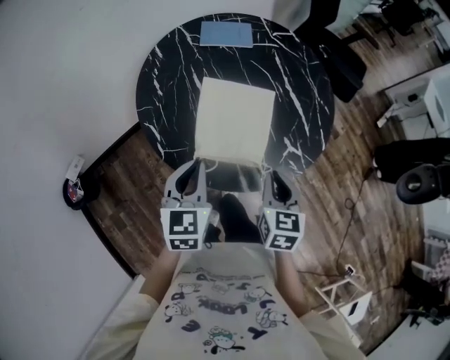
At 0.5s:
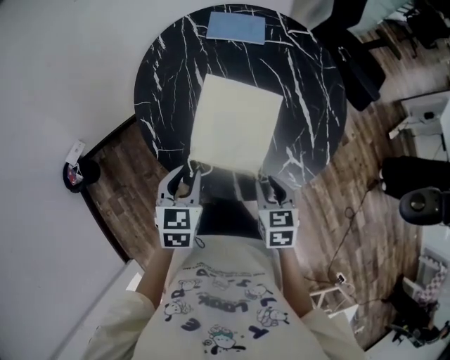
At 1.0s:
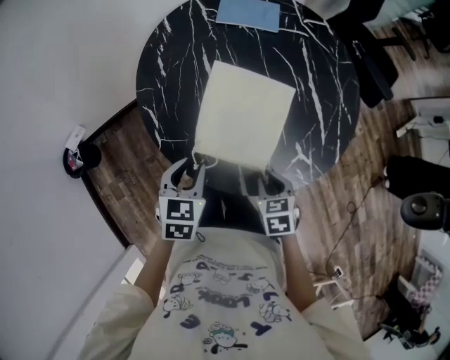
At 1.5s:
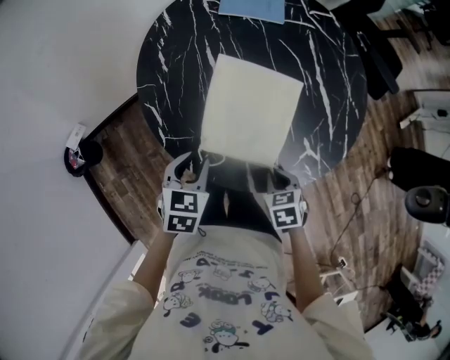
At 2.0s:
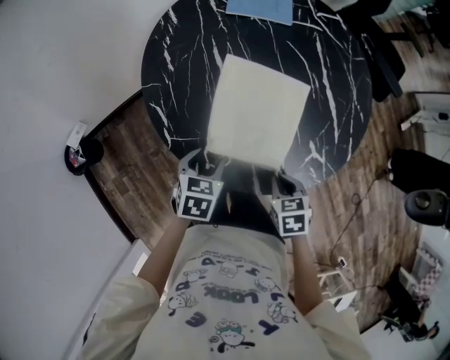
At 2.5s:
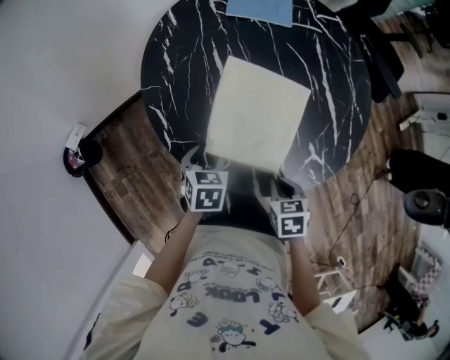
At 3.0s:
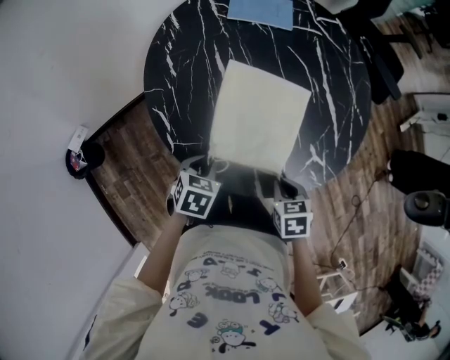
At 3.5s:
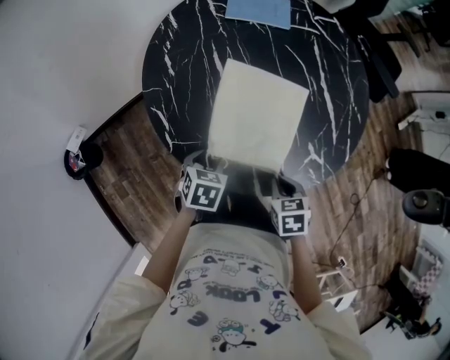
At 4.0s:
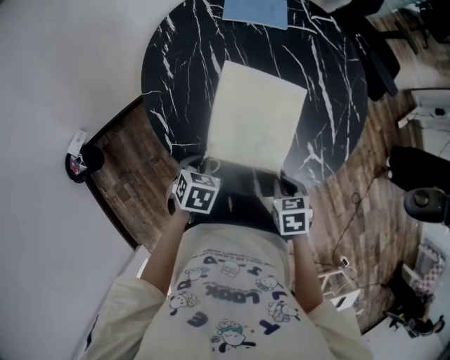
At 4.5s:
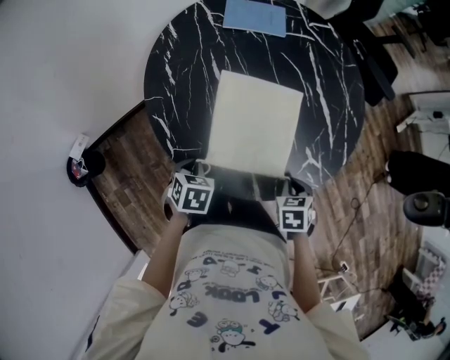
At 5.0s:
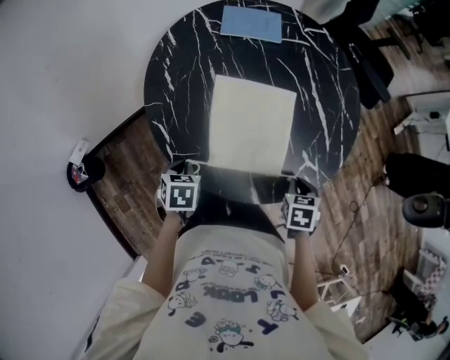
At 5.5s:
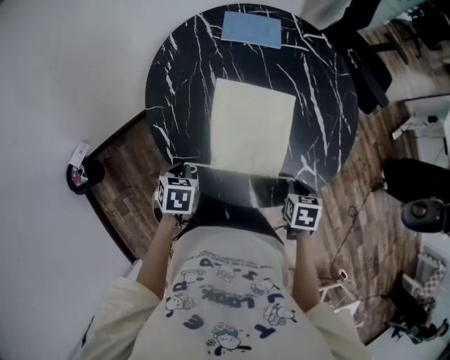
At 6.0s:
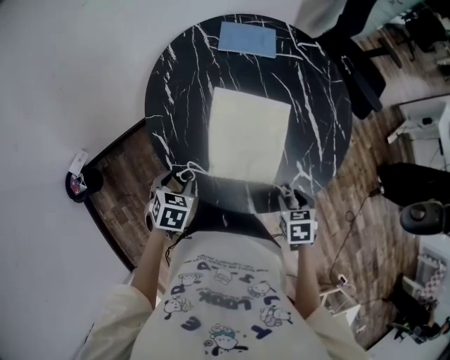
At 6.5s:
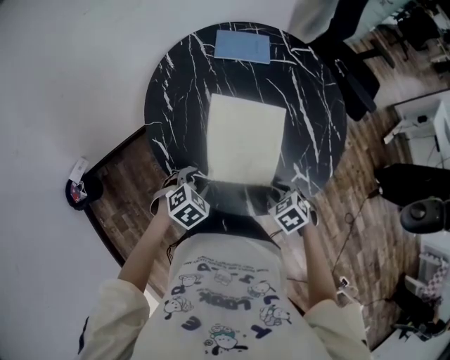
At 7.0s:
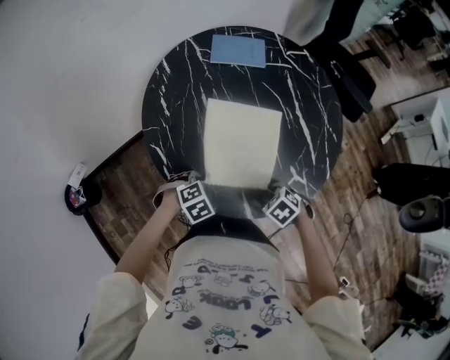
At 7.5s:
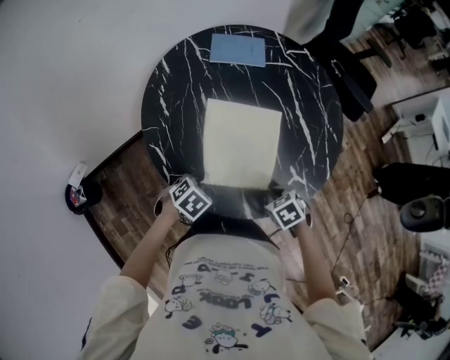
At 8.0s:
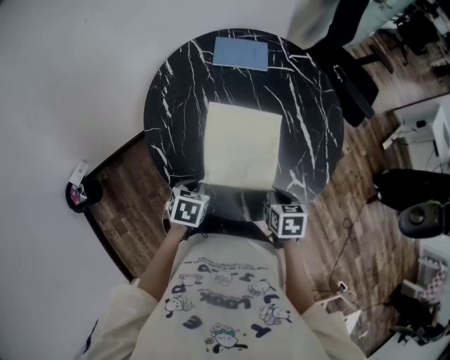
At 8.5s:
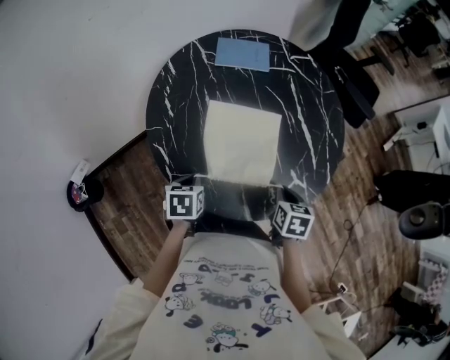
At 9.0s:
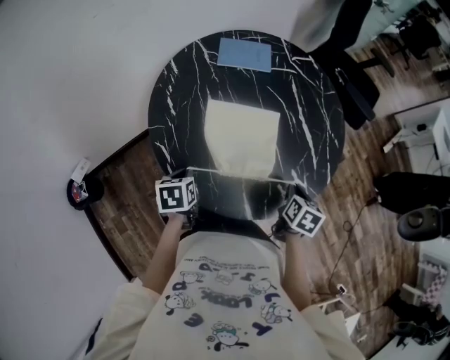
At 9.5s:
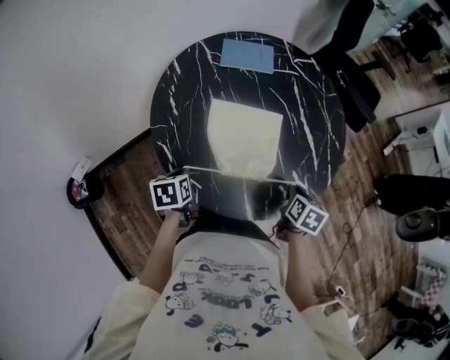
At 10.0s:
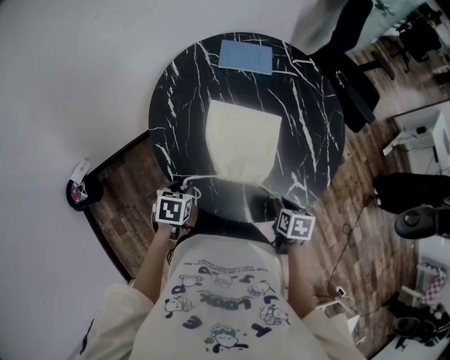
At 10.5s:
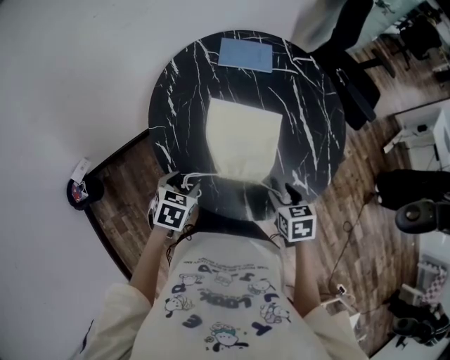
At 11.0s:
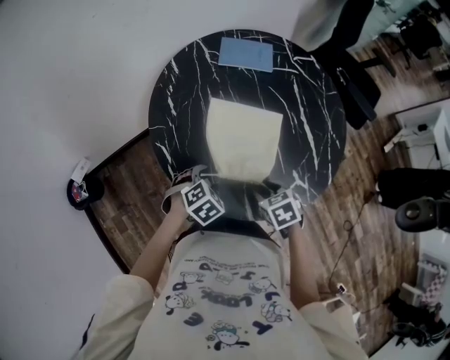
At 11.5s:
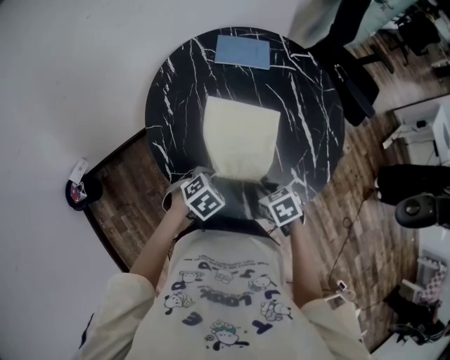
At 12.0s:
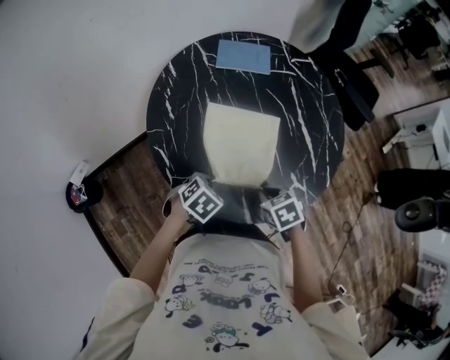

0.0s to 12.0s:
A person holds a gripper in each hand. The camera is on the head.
0.0s to 2.0s: Both grippers travel together downward, roughly 15 cm. The left gripper swivels approximately 30 degrees, and opens, while the right gripper changes its angle by approximately 40 degrees, and opens, then closes again.
2.0s to 4.0s: The left gripper closes its fingers.
4.0s to 6.0s: The right gripper goes some 5 cm to the right, and opens its fingers; the left gripper shifts some 5 cm to the left, and opens up.
6.0s to 8.0s: The right gripper moves about 5 cm, and closes up, while the left gripper ends up approximately 5 cm from where it was, and closes up.
8.0s to 10.0s: The right gripper ends up some 5 cm from where it was, and opens, while the left gripper moves to the left, some 5 cm, and opens its fingers.
10.0s to 12.0s: The left gripper is displaced to the right by approximately 10 cm, rotates approximately 40 degrees, and closes up; the right gripper heads to the left, covering about 10 cm, rotates approximately 40 degrees, and closes its fingers.

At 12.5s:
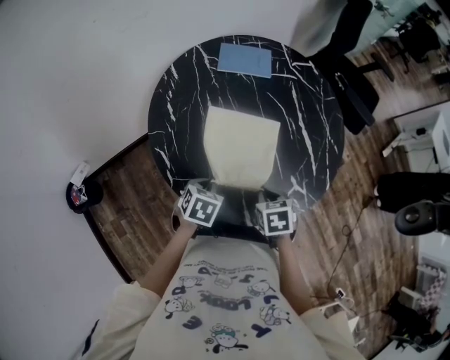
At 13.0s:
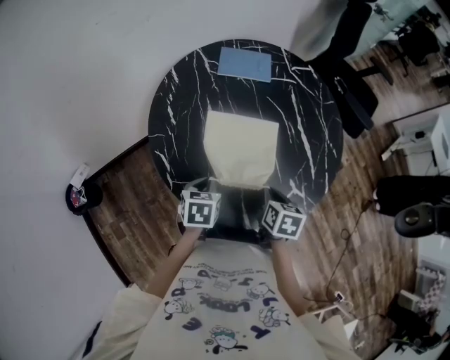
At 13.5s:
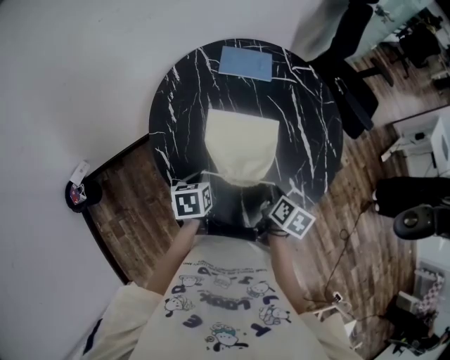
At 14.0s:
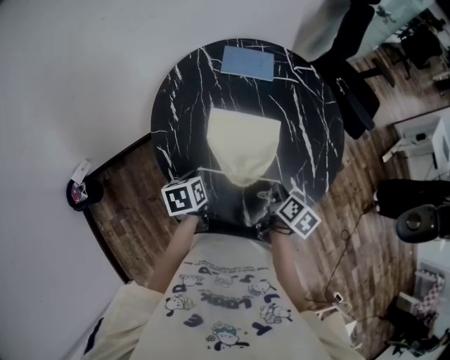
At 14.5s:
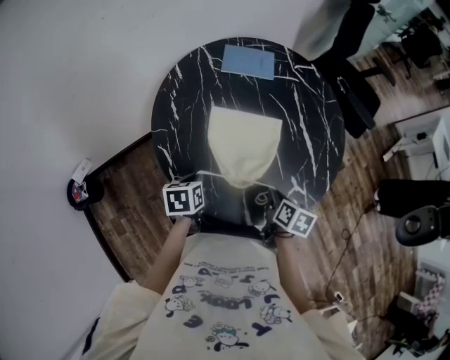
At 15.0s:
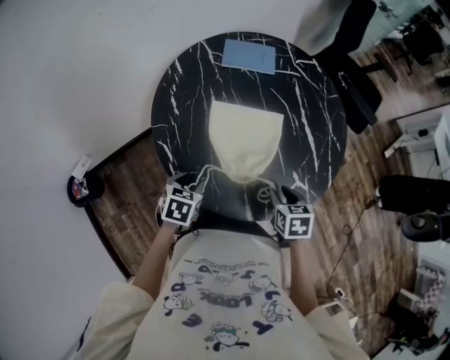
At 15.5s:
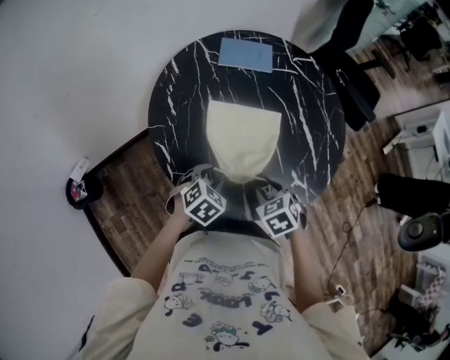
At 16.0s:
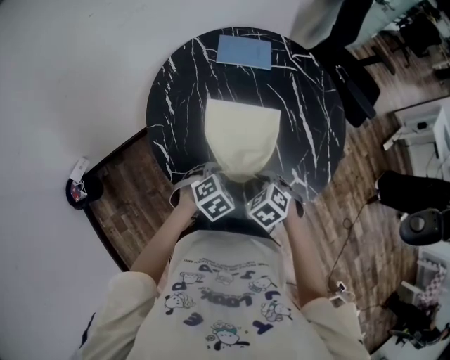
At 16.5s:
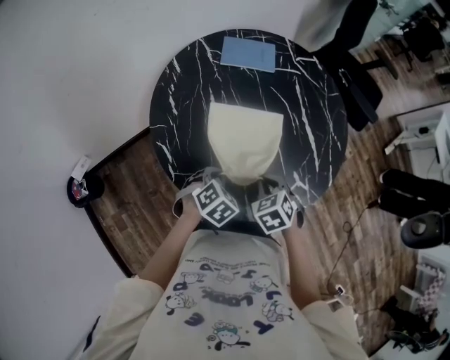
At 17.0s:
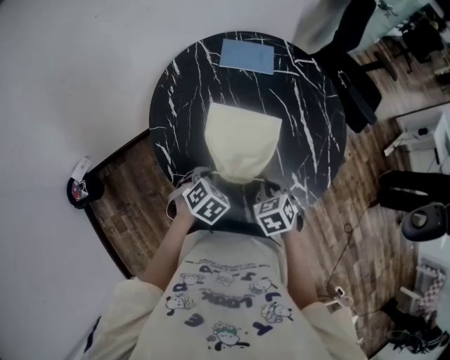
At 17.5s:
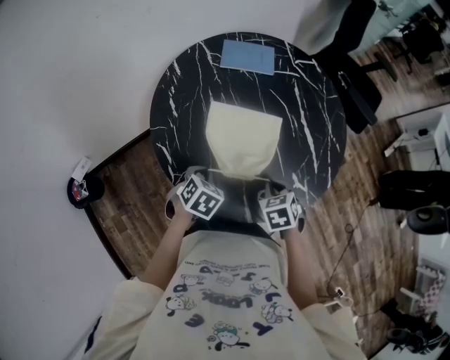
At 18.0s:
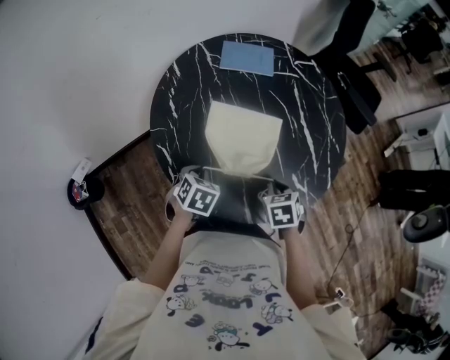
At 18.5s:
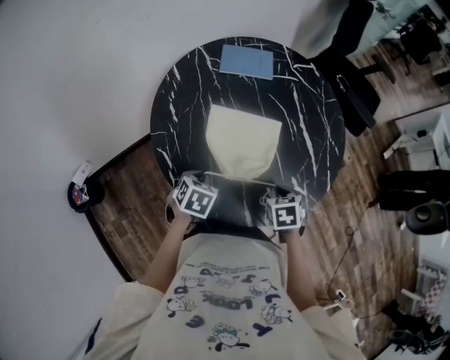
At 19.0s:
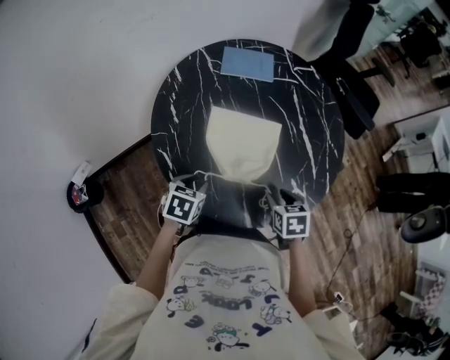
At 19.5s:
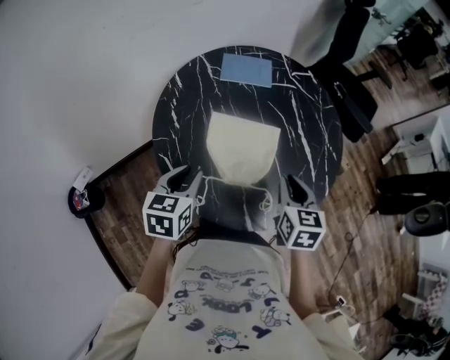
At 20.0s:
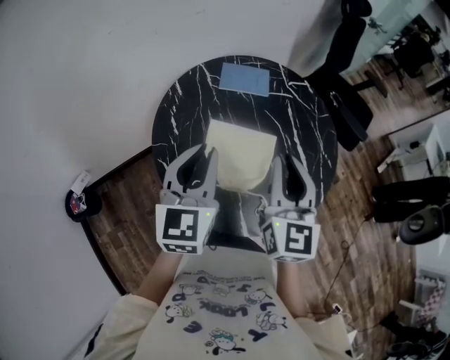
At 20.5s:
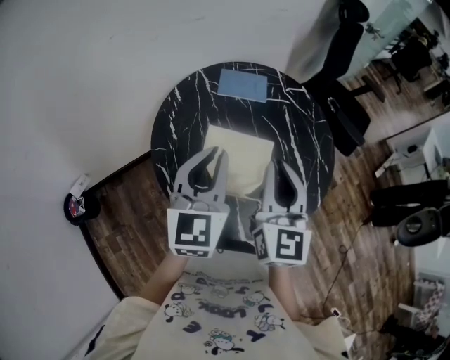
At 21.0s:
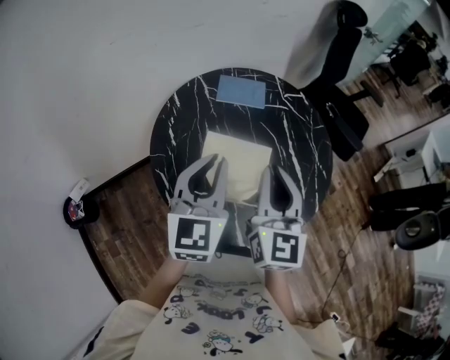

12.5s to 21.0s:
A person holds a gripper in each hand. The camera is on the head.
12.5s to 14.5s: The right gripper turns by about 40 degrees; the left gripper changes its angle by about 30 degrees.
14.5s to 16.5s: The left gripper shifts some 5 cm to the right, twists roughly 60 degrees clockwise, seen from behind, and opens, then closes again, while the right gripper heads to the left, covering roughly 5 cm, rotates around the line of its fingers by about 60 degrees, counterclockwise from behind, and opens and closes again.
16.5s to 19.0s: The left gripper is displaced to the left by approximately 5 cm, swivels some 30 degrees, and opens up. Meanwhile the right gripper travels to the right by some 5 cm, turns by approximately 30 degrees, and opens.
19.0s to 21.0s: The grippers both shift upward by about 30 cm. The right gripper angles its fingers upward, by some 60 degrees, and closes its fingers; the left gripper points its fingers some 50 degrees further upward, and closes.

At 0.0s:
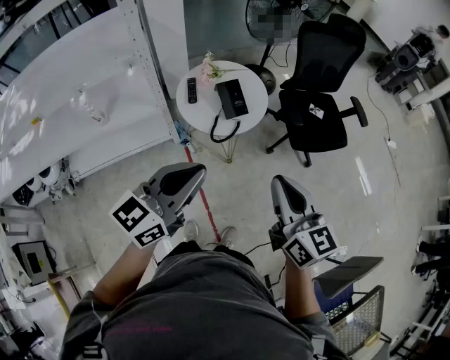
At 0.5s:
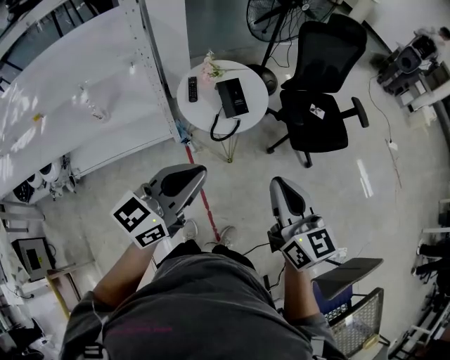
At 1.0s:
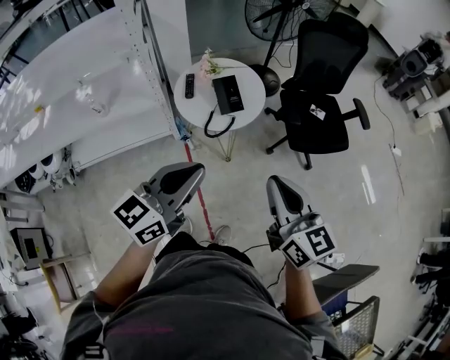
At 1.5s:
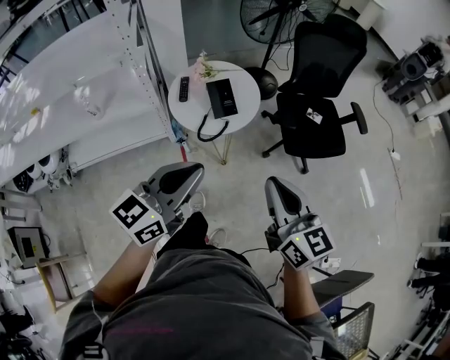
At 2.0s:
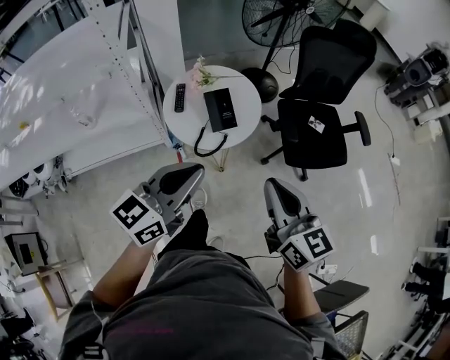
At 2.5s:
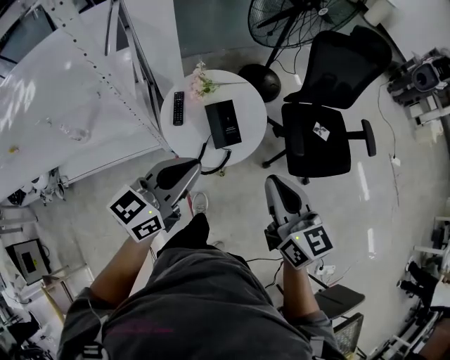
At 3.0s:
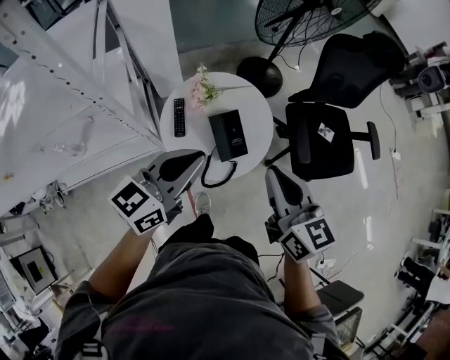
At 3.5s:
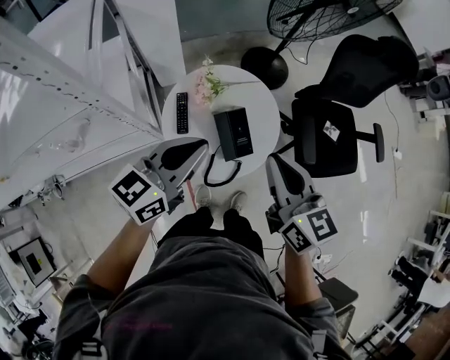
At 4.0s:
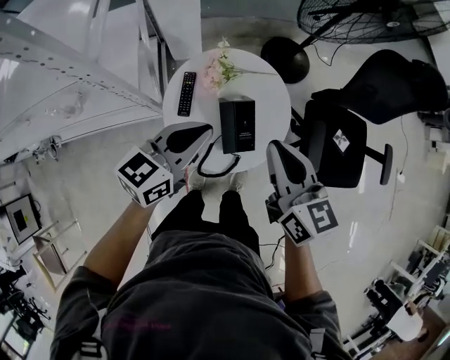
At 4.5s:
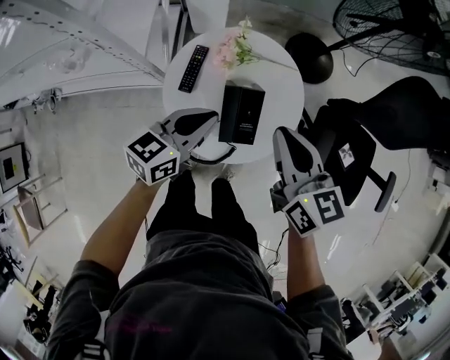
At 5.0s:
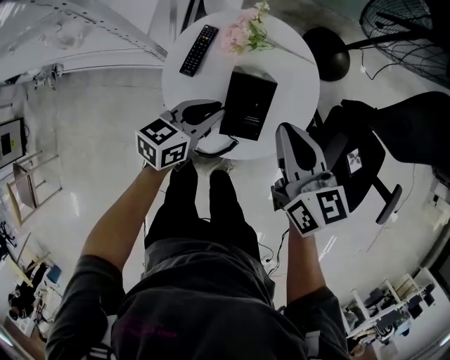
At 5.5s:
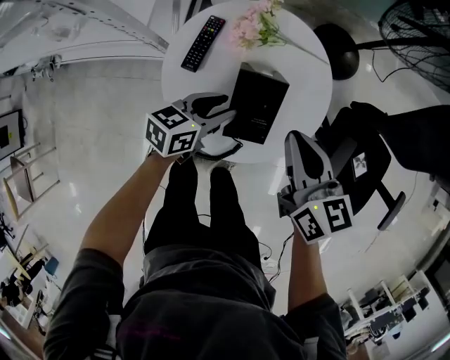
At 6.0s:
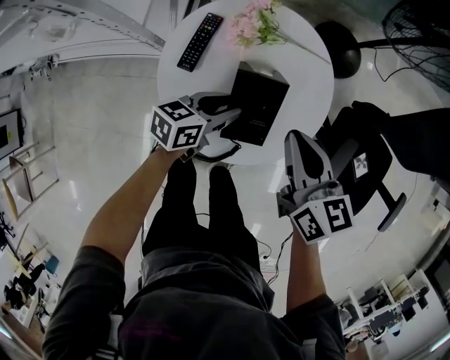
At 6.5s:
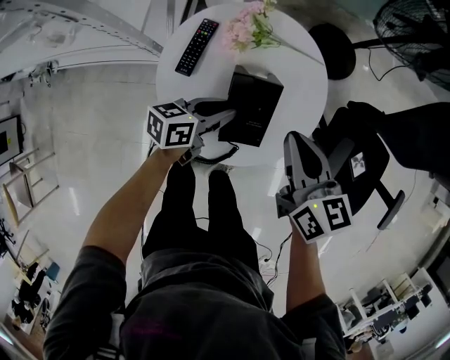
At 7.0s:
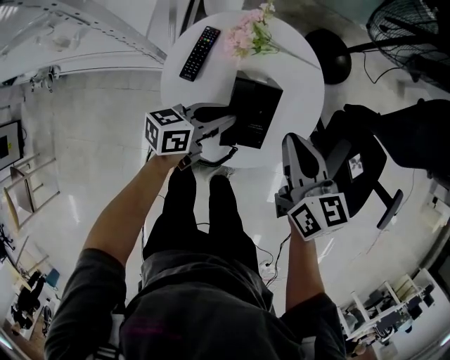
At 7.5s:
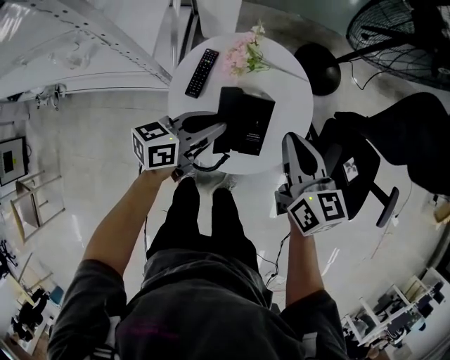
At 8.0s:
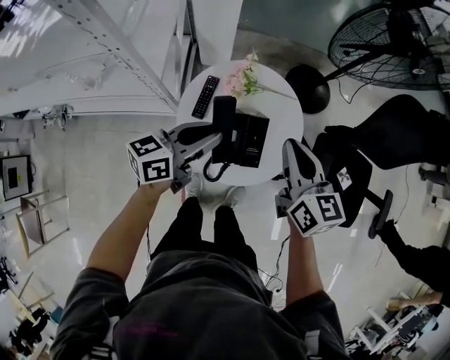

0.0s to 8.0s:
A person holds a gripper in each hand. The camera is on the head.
0.0s to 2.0s: Both grippers move forward and to the right, about 15 cm.
2.0s to 4.0s: The left gripper heads forward and downward, covering some 35 cm, while the right gripper travels forward by roughly 35 cm.
4.0s to 6.0s: The right gripper moves downward, roughly 20 cm; the left gripper is displaced downward by about 30 cm, swivels about 30 degrees, and opens up.
6.0s to 8.0s: The right gripper is displaced upward by about 15 cm. The left gripper goes roughly 25 cm upward, and turns by approximately 20 degrees.
